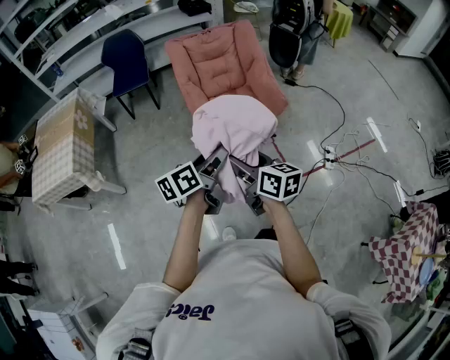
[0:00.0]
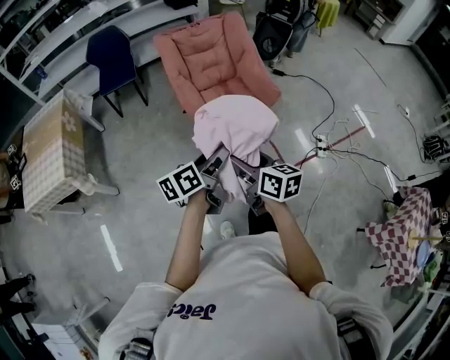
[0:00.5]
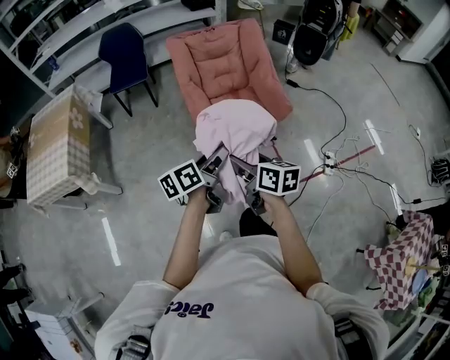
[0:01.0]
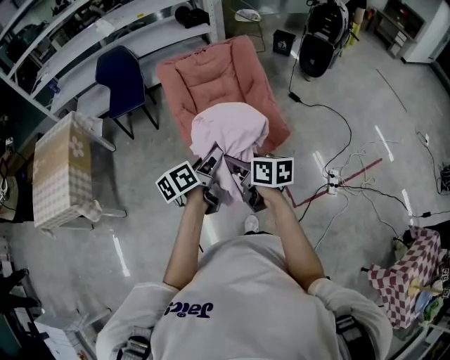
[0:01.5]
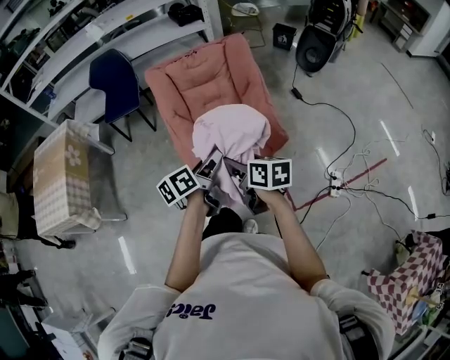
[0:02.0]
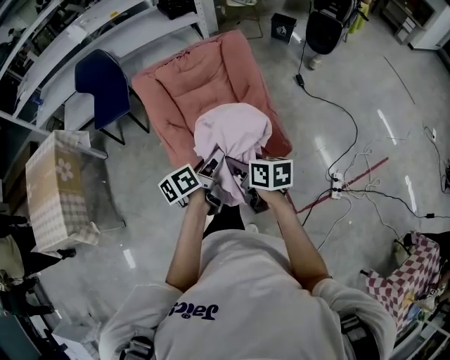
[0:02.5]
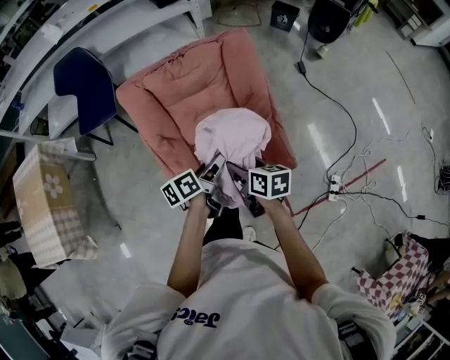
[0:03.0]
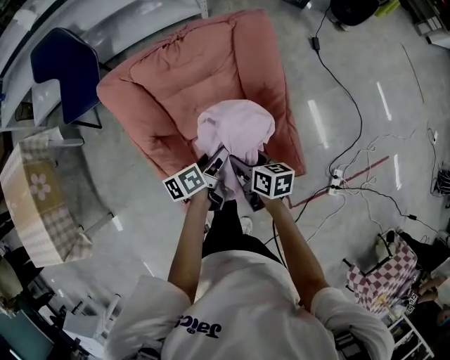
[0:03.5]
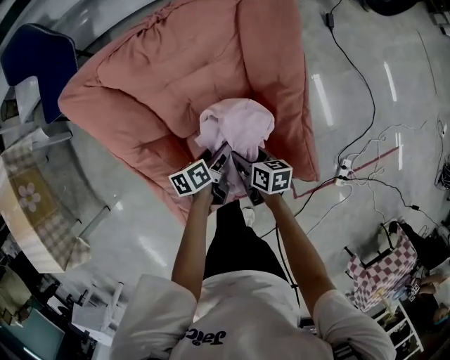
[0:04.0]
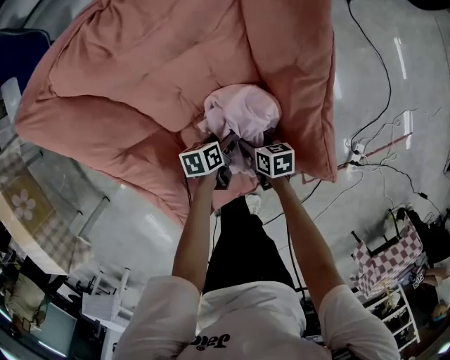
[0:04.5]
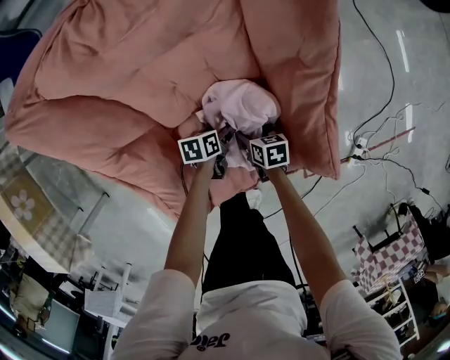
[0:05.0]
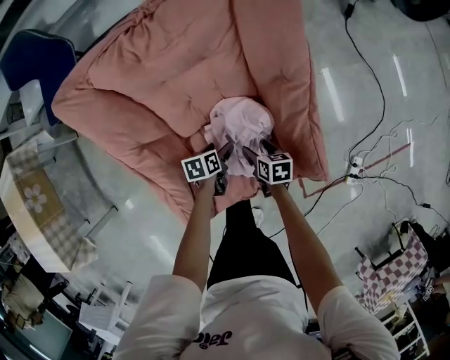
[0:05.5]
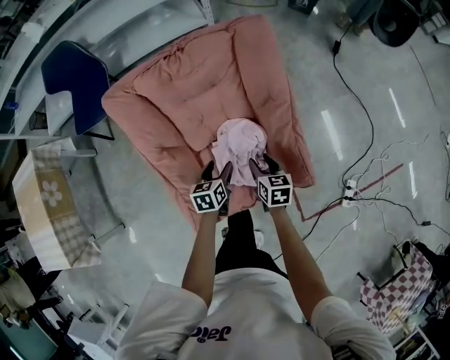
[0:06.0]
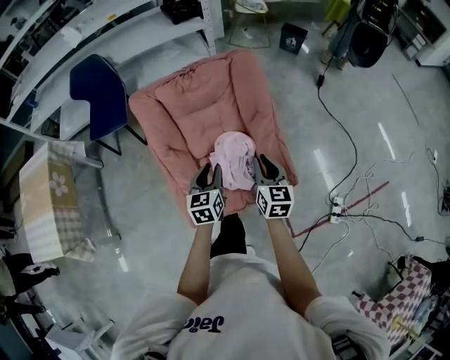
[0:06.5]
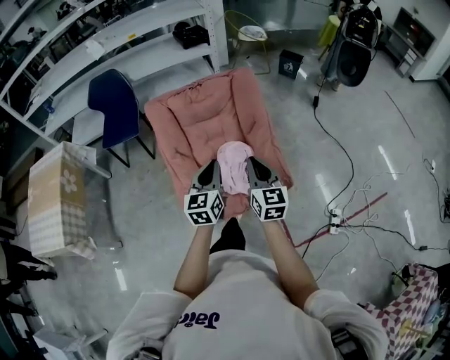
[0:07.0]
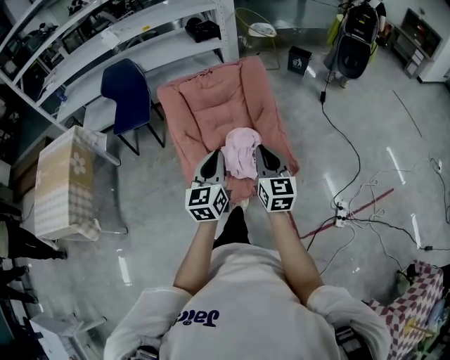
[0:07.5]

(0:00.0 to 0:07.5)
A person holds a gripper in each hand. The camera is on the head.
0:00.0 - 0:02.0: The two grippers go some 30 cm forward.
0:02.0 - 0:04.0: Both grippers move downward and forward, about 50 cm. The right gripper rotates some 20 degrees. The left gripper turns by some 30 degrees.
0:04.0 - 0:05.5: Both grippers travel together downward, about 10 cm. The left gripper rotates some 20 degrees.
0:05.5 - 0:07.5: Both grippers move upward and backward, some 60 cm. The left gripper tips its fingers upward by about 50 degrees, and closes, while the right gripper angles its fingers upward, by about 50 degrees, and closes.

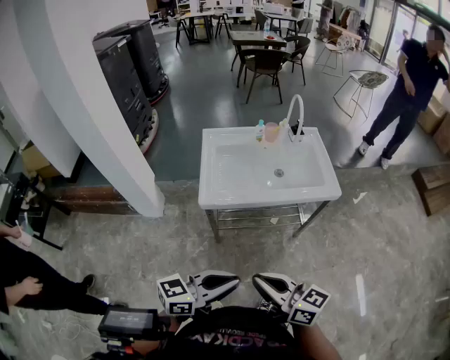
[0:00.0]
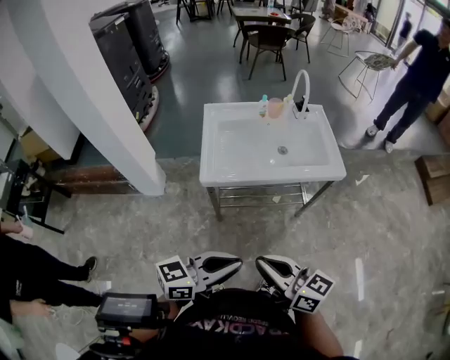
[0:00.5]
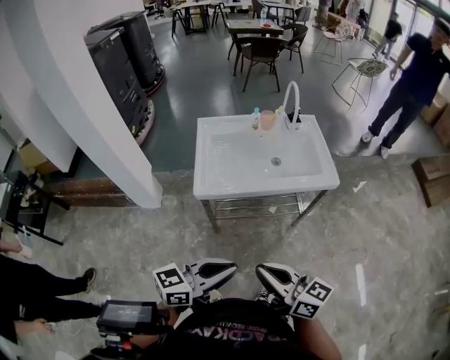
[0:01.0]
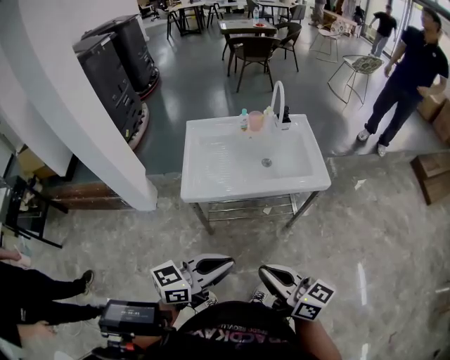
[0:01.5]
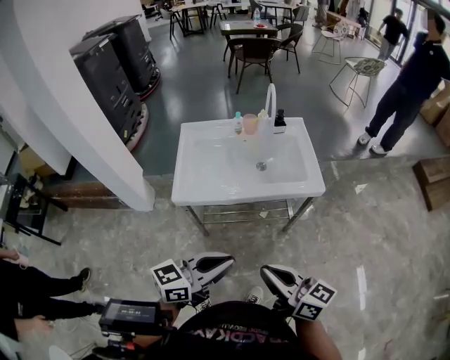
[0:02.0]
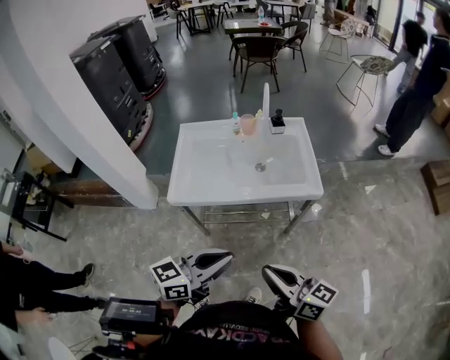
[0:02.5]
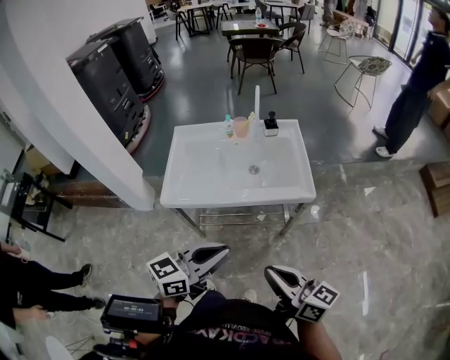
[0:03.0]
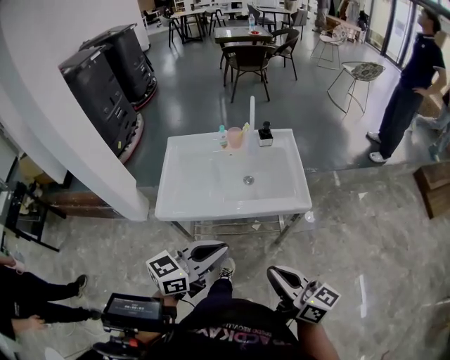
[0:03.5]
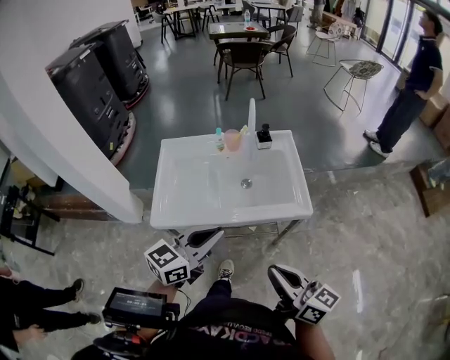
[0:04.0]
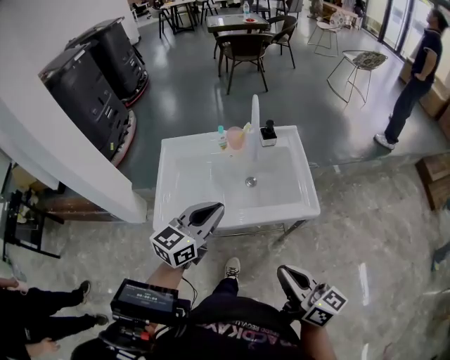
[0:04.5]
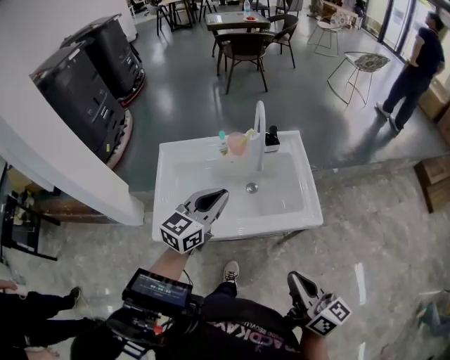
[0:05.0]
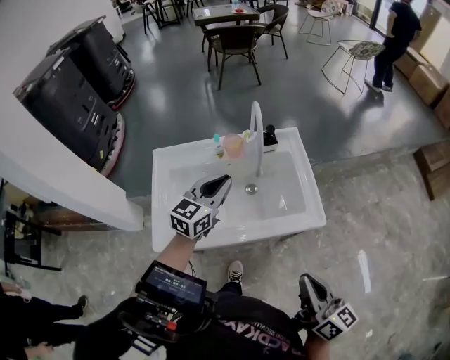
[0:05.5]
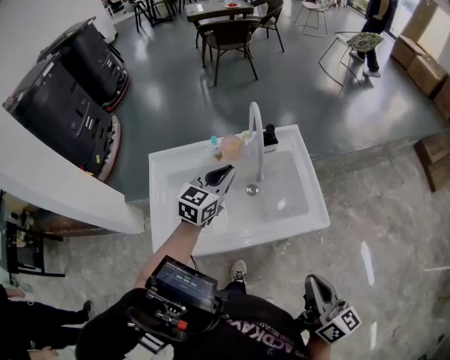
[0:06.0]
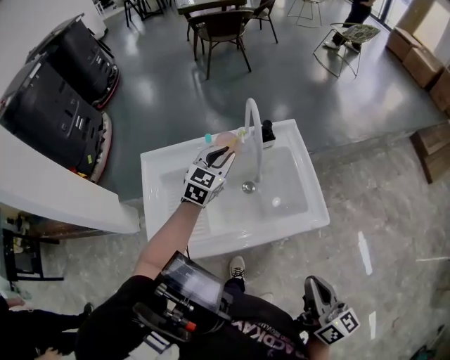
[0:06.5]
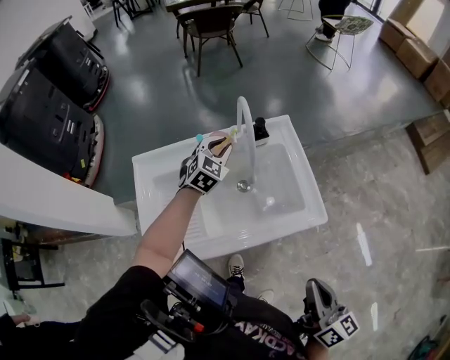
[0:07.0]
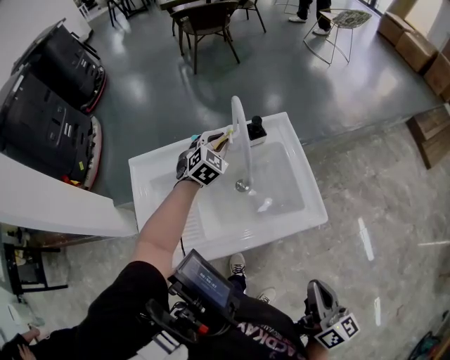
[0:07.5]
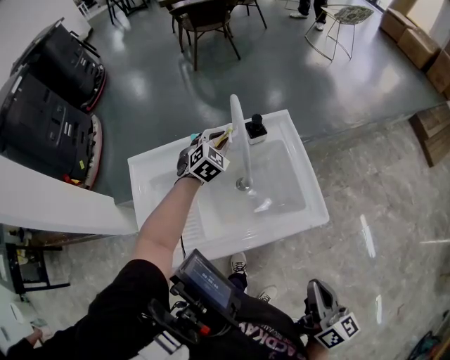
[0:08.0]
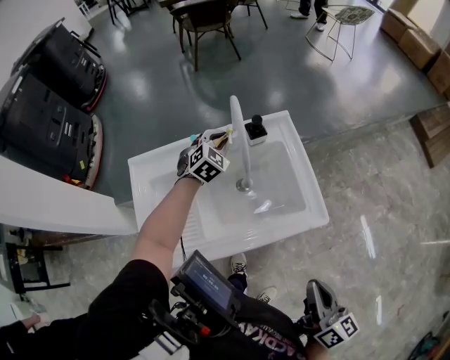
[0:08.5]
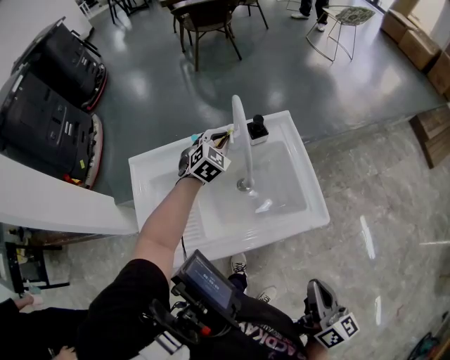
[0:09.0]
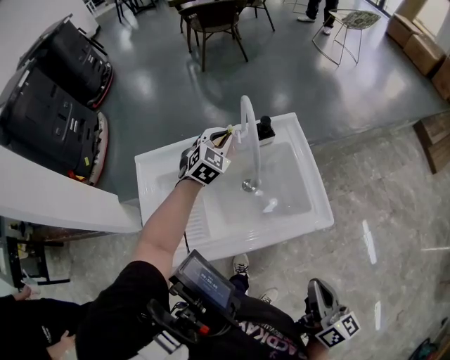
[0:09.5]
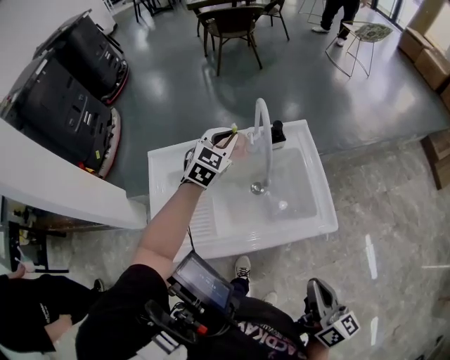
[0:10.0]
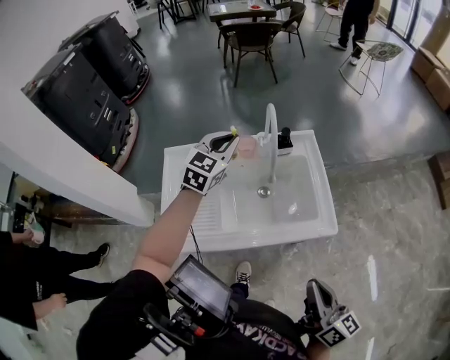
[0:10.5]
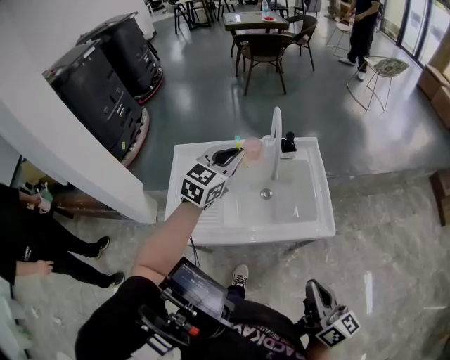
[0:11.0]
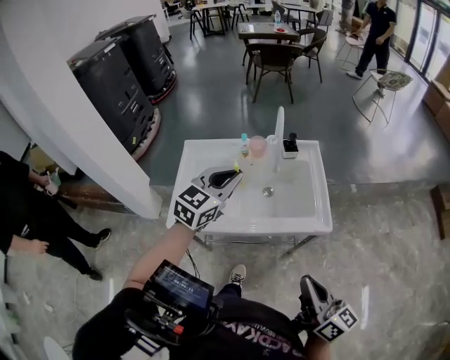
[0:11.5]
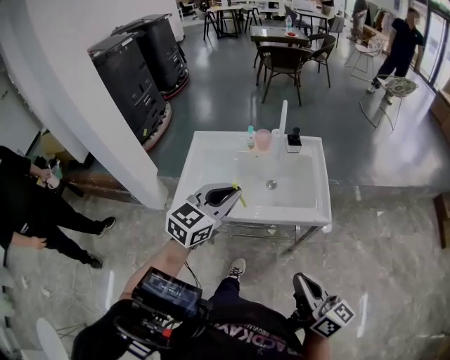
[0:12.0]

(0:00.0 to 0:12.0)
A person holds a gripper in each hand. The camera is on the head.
0:00.0 - 0:02.0: The left gripper travels to the right and forward by roughly 15 cm. The right gripper heads to the right, covering approximately 15 cm.
0:02.0 - 0:04.0: The left gripper goes approximately 20 cm forward; the right gripper travels forward and to the right by approximately 15 cm.
0:04.0 - 0:06.0: The right gripper shifts approximately 10 cm forward, and swivels approximately 30 degrees. Meanwhile the left gripper is displaced forward by some 30 cm.
0:06.0 - 0:08.0: The left gripper moves forward and downward, approximately 20 cm, and rotates roughly 40 degrees.
0:08.0 - 0:10.0: The left gripper moves upward, approximately 10 cm.
0:10.0 - 0:12.0: The left gripper shifts some 35 cm backward, and swivels about 20 degrees. The right gripper goes about 10 cm backward, and rotates about 30 degrees.

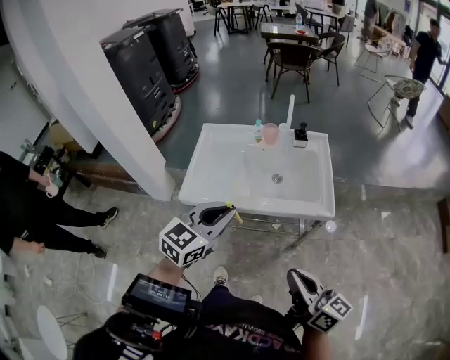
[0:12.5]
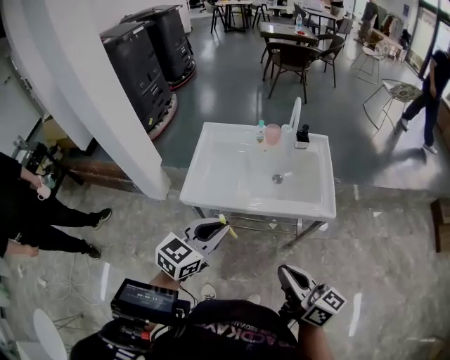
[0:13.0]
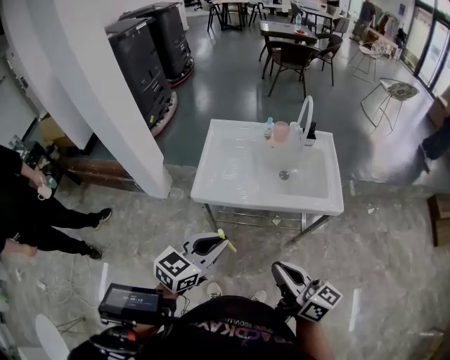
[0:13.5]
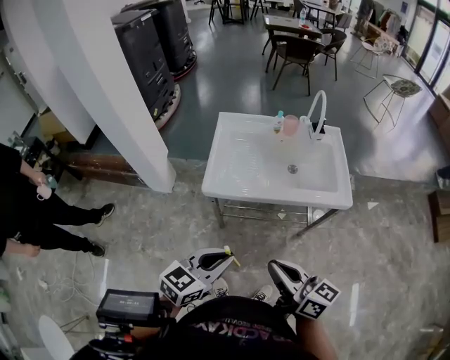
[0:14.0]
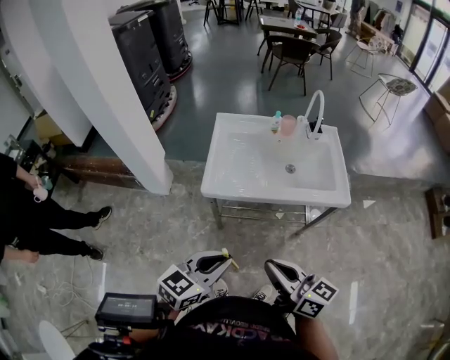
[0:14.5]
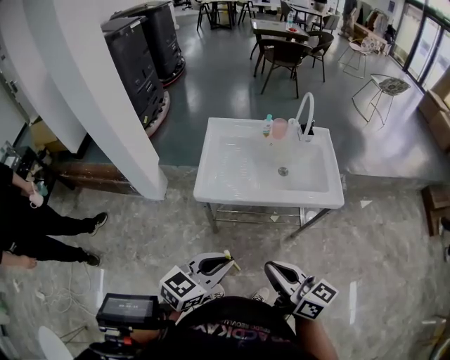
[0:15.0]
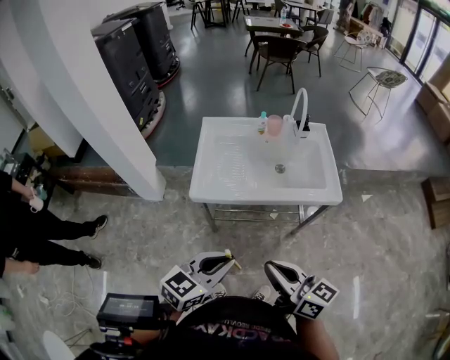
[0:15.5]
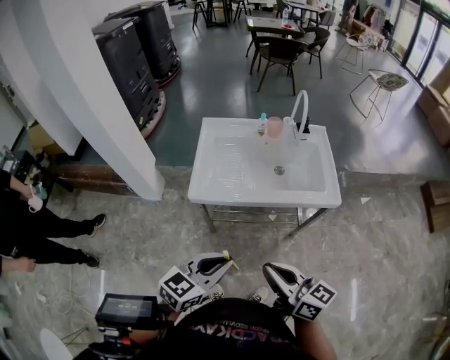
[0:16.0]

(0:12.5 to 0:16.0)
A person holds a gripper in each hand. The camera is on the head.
0:12.5 - 0:14.5: The left gripper moves backward and to the left, approximately 20 cm. Meanwhile the right gripper travels to the left by about 20 cm.
0:14.5 - 0:16.0: The grippers stay close to where they were, moving slightly.

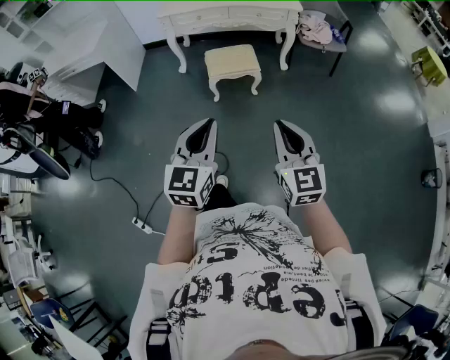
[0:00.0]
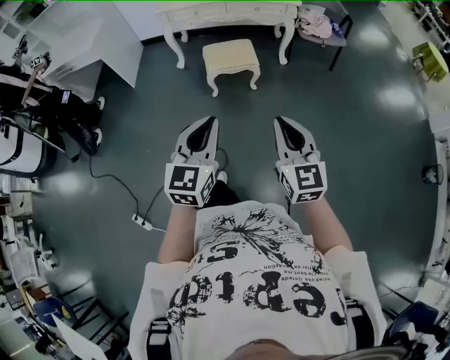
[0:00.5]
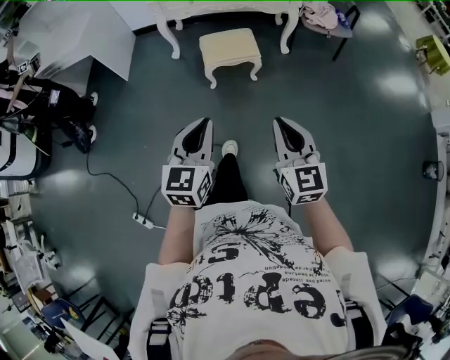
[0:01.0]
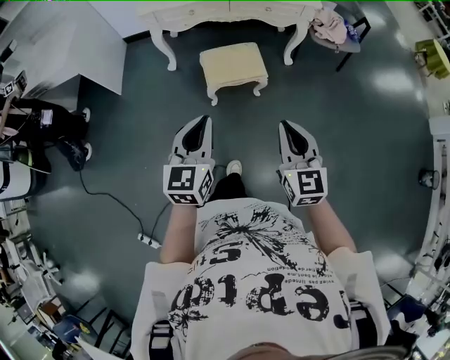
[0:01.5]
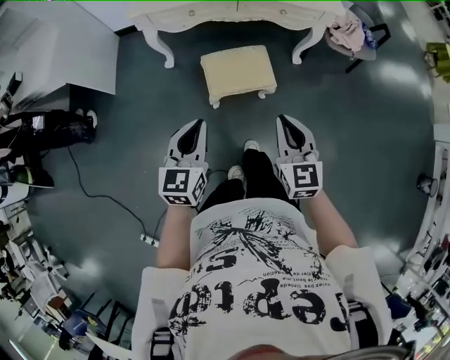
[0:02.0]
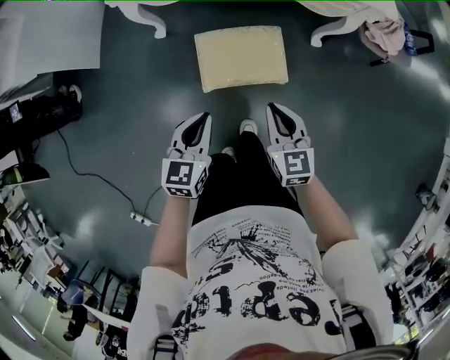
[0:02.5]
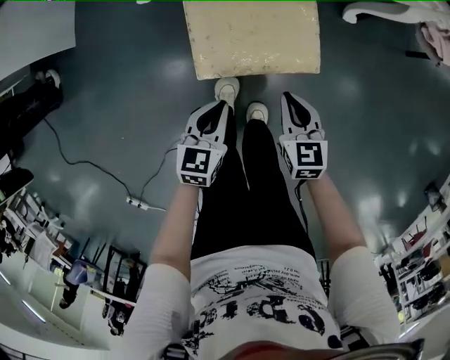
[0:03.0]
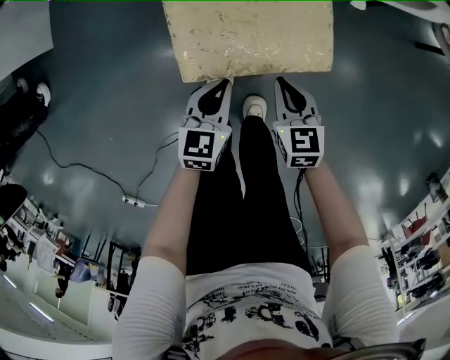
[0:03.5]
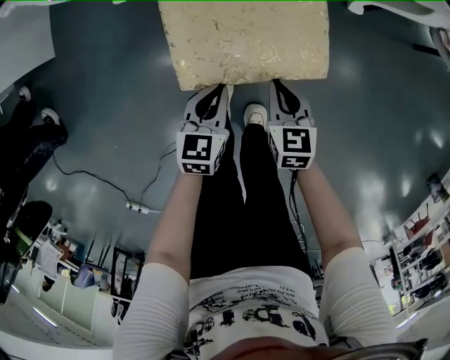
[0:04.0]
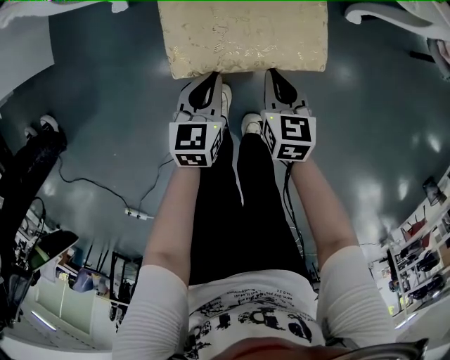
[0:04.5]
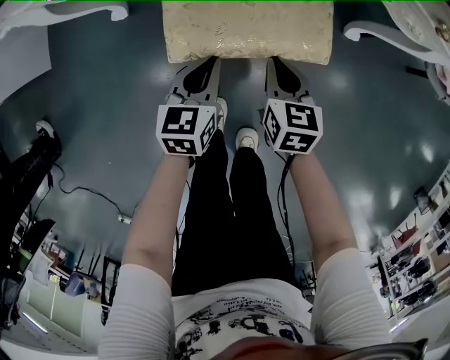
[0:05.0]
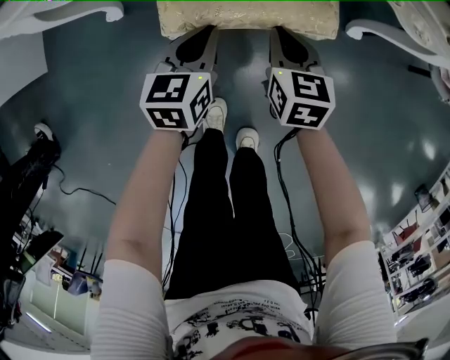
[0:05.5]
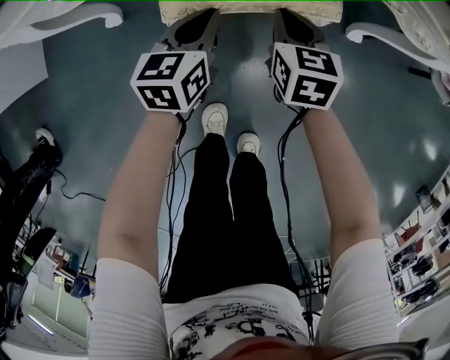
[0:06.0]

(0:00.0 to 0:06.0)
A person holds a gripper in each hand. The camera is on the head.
0:00.0 - 0:02.0: The two grippers travel together, forward, about 50 cm.
0:02.0 - 0:04.0: Both grippers move downward, roughly 50 cm. The right gripper turns by roughly 30 degrees; the left gripper rotates approximately 20 degrees.
0:04.0 - 0:06.0: Both grippers travel together forward, roughly 30 cm.
